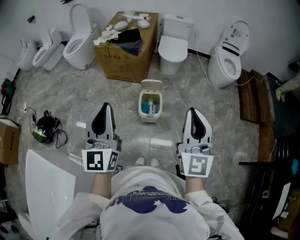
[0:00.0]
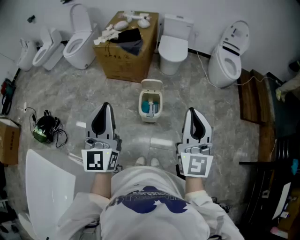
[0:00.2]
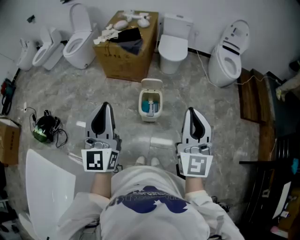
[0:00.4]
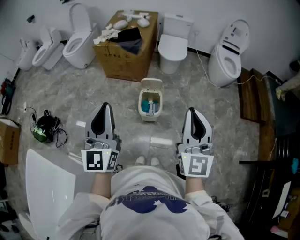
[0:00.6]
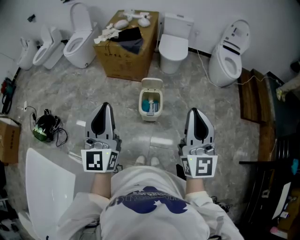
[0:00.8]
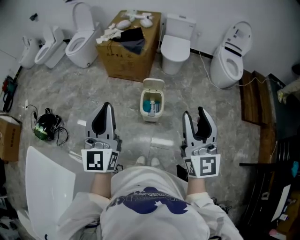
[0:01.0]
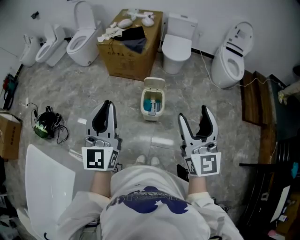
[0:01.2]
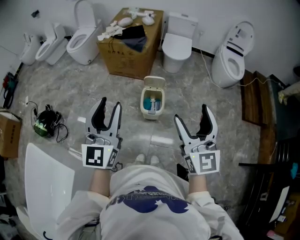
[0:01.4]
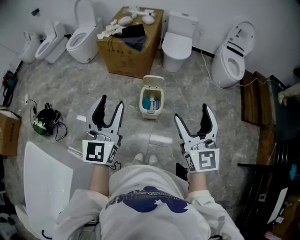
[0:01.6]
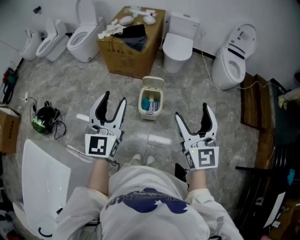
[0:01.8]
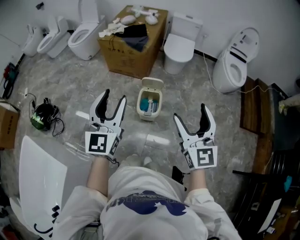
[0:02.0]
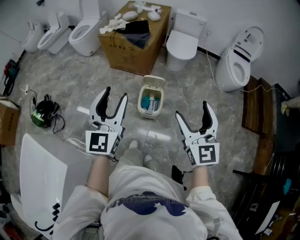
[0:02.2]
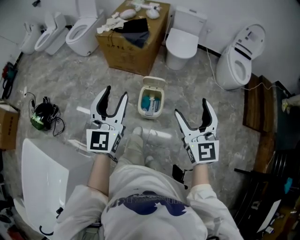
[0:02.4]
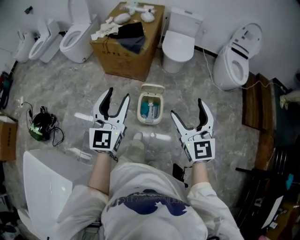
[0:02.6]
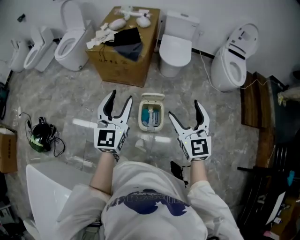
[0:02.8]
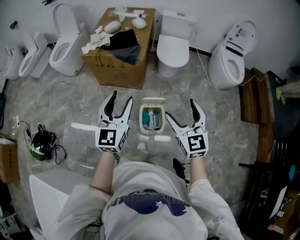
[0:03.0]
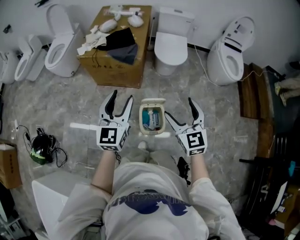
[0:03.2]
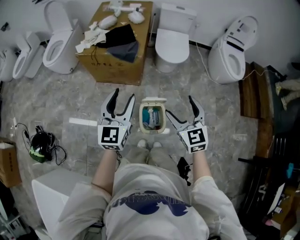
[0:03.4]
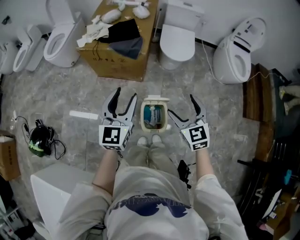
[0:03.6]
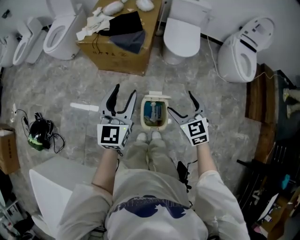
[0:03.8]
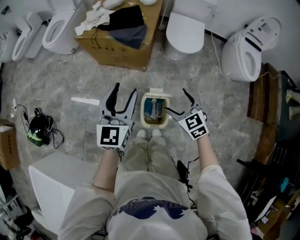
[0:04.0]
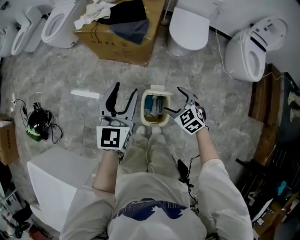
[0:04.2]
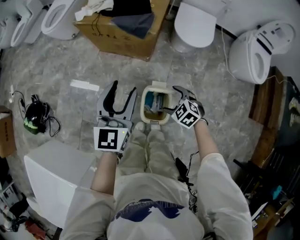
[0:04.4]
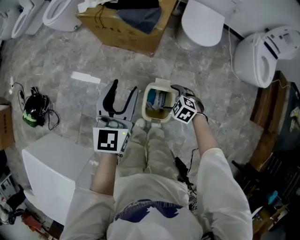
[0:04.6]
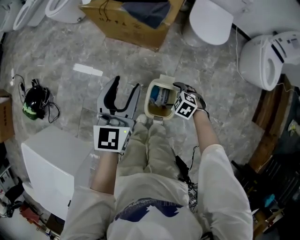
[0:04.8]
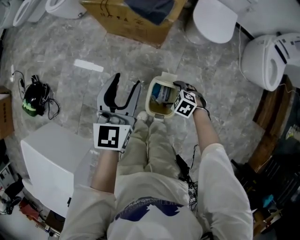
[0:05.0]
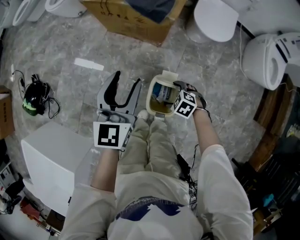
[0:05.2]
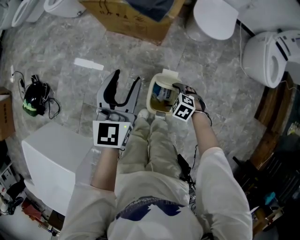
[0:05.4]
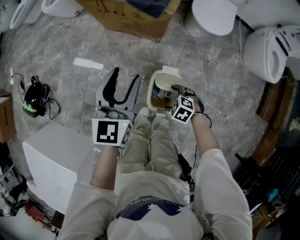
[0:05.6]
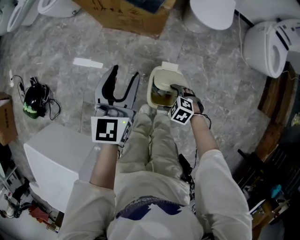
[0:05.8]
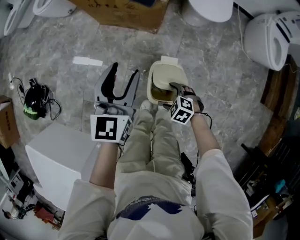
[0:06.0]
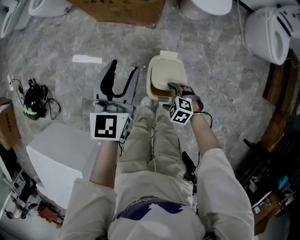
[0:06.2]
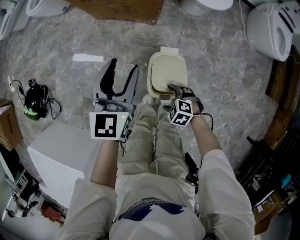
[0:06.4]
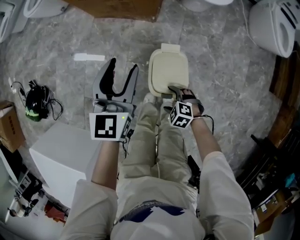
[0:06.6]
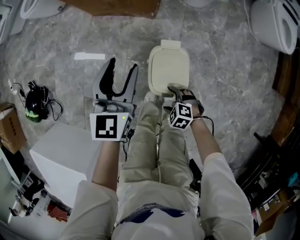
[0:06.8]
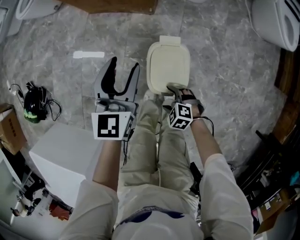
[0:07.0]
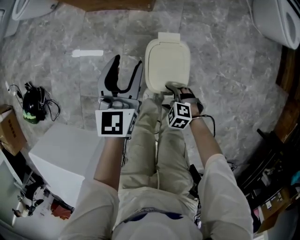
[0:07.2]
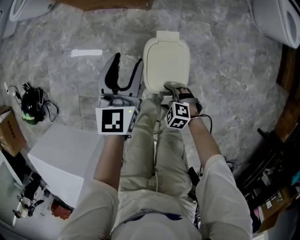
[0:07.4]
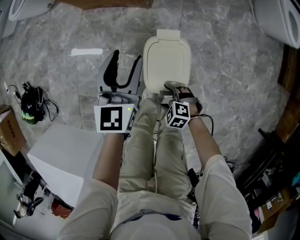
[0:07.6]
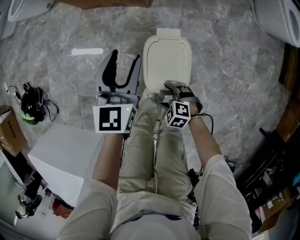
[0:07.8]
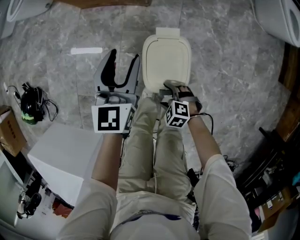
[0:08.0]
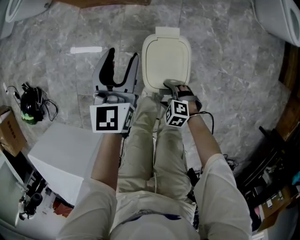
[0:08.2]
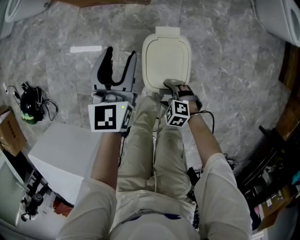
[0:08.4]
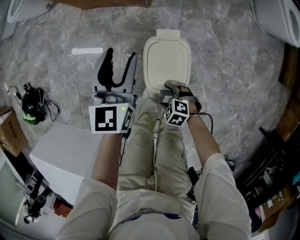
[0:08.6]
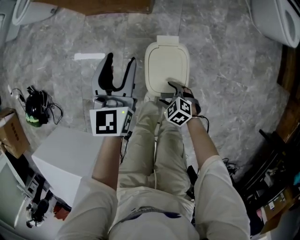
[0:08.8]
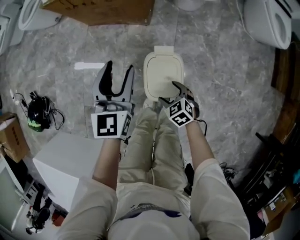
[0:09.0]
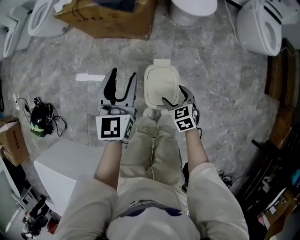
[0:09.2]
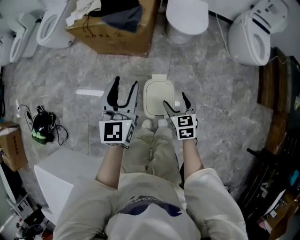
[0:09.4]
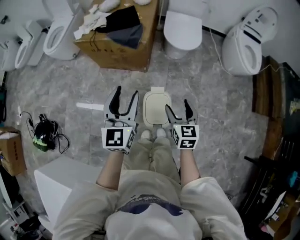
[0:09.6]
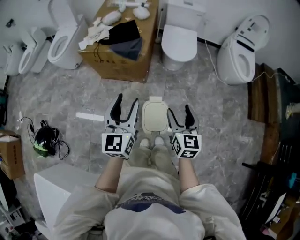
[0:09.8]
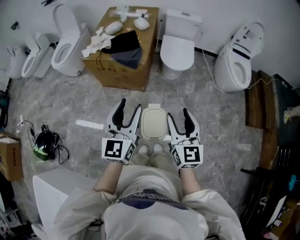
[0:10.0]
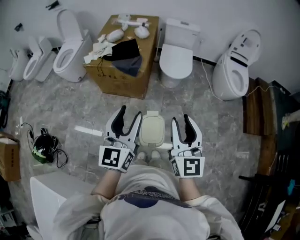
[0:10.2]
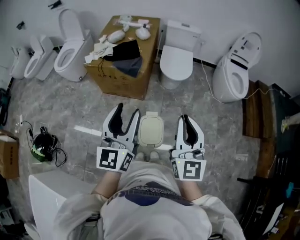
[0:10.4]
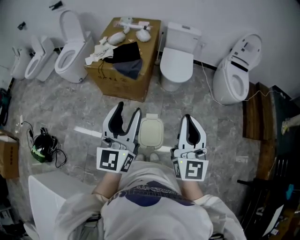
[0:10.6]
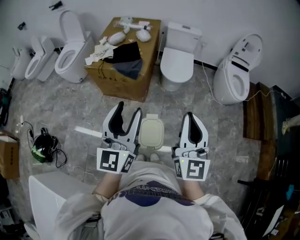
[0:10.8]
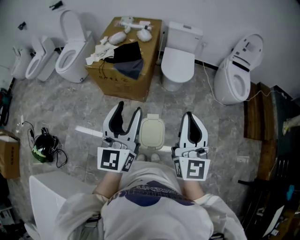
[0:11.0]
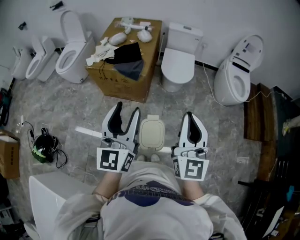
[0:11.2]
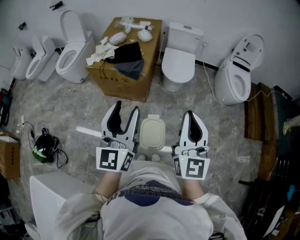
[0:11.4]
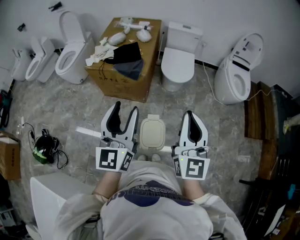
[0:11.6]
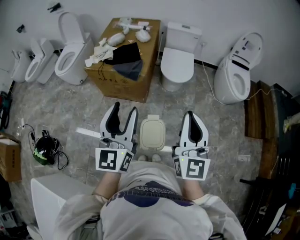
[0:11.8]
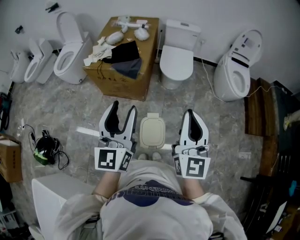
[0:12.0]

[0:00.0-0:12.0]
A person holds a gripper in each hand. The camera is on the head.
0:00.0 to 0:01.6: The right gripper opens its fingers. Meanwhile the left gripper opens.
0:01.6 to 0:03.0: The right gripper moves forward and downward, approximately 30 cm, while the left gripper moves forward, about 30 cm.
0:03.0 to 0:04.4: The right gripper goes about 35 cm downward, and angles its fingers downward, by roughly 50 degrees, while the left gripper moves approximately 15 cm.
0:04.4 to 0:06.0: The right gripper heads downward, to the left and backward, covering about 15 cm, while the left gripper shifts roughly 10 cm downward.
0:06.0 to 0:07.6: The left gripper goes some 20 cm downward. The right gripper heads downward, backward and to the left, covering some 20 cm.
0:07.6 to 0:09.0: The right gripper shifts roughly 15 cm upward, forward and to the right, and rotates approximately 30 degrees. Meanwhile the left gripper moves upward, approximately 10 cm.
0:09.0 to 0:10.4: The left gripper shifts approximately 40 cm upward, and swivels roughly 20 degrees, while the right gripper travels upward by some 60 cm, tilts its fingers some 60 degrees upward, and closes up.
0:10.4 to 0:12.0: There are only small adjustments of the grippers.

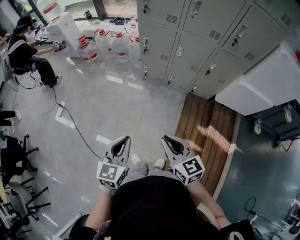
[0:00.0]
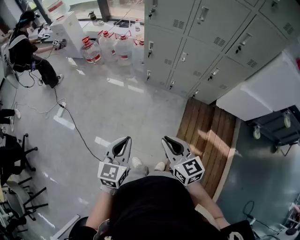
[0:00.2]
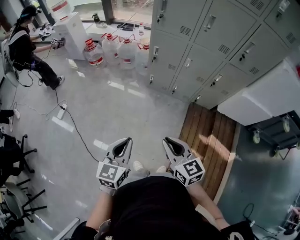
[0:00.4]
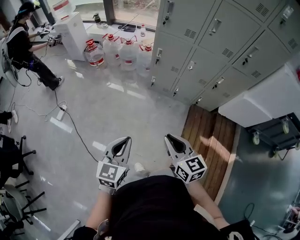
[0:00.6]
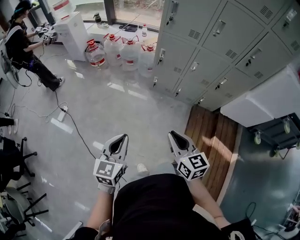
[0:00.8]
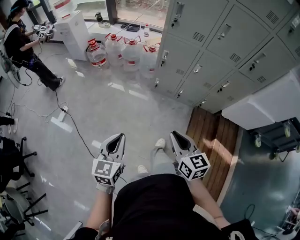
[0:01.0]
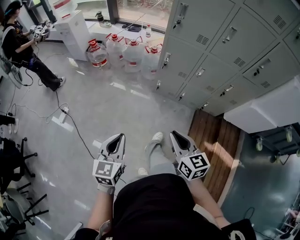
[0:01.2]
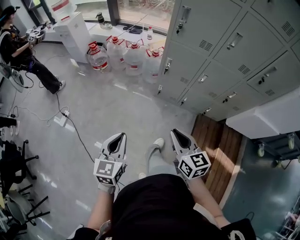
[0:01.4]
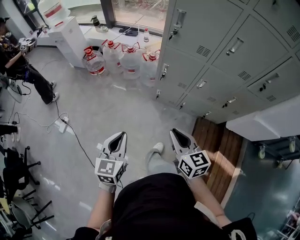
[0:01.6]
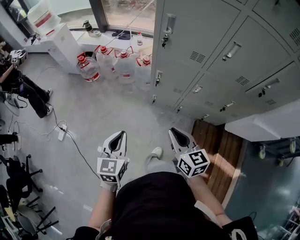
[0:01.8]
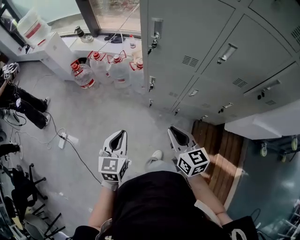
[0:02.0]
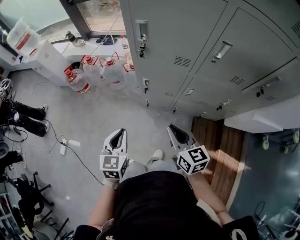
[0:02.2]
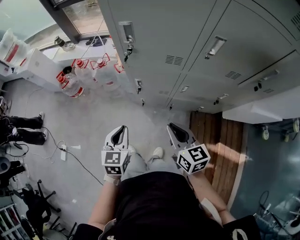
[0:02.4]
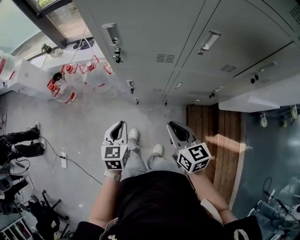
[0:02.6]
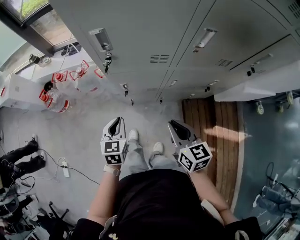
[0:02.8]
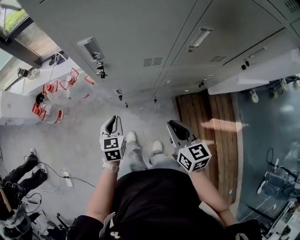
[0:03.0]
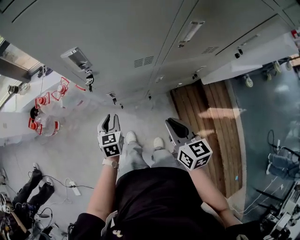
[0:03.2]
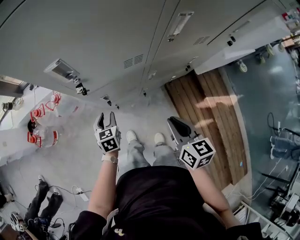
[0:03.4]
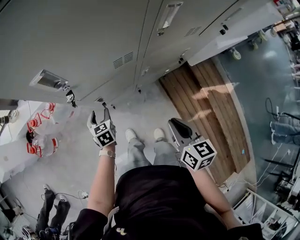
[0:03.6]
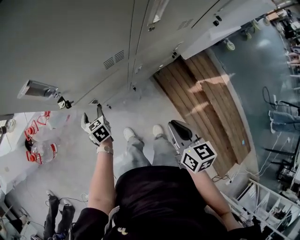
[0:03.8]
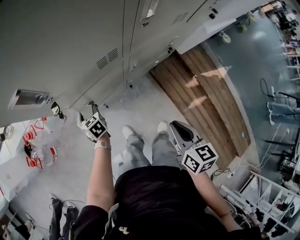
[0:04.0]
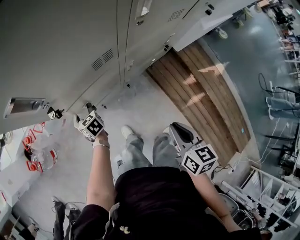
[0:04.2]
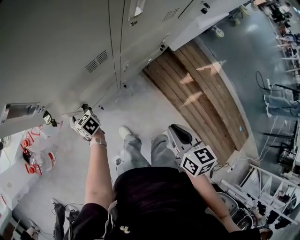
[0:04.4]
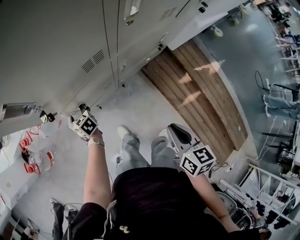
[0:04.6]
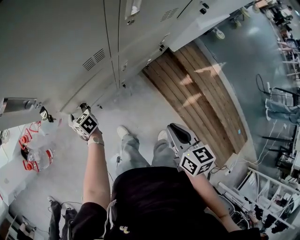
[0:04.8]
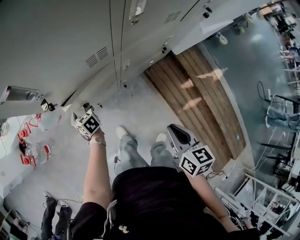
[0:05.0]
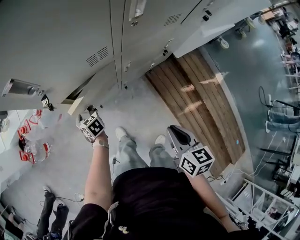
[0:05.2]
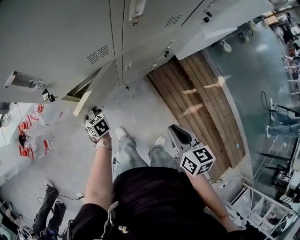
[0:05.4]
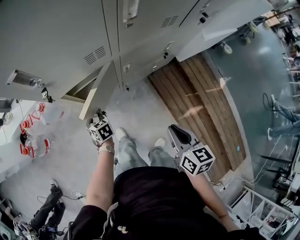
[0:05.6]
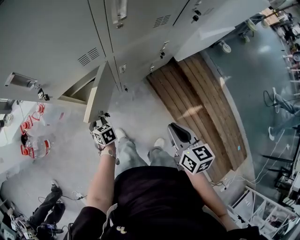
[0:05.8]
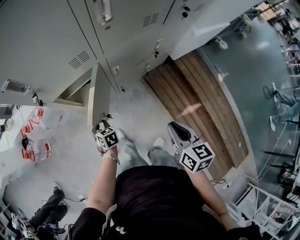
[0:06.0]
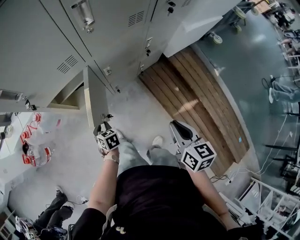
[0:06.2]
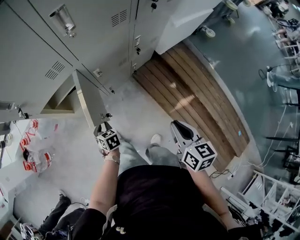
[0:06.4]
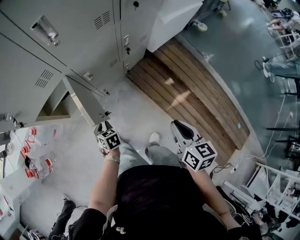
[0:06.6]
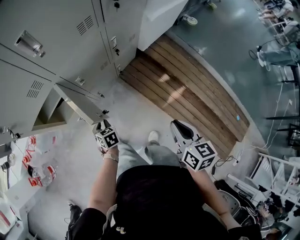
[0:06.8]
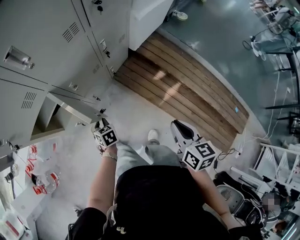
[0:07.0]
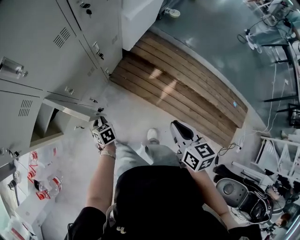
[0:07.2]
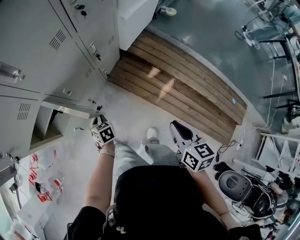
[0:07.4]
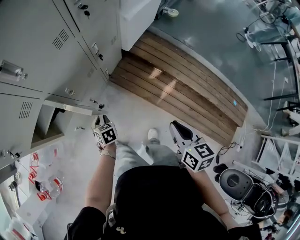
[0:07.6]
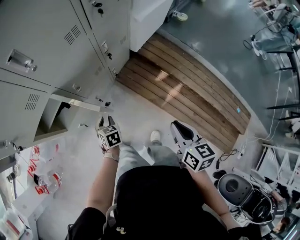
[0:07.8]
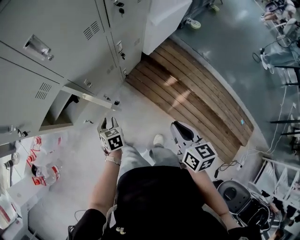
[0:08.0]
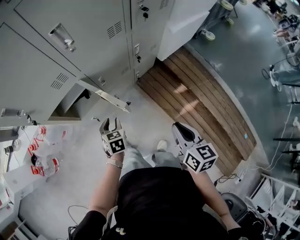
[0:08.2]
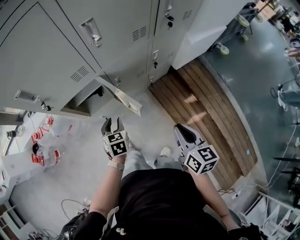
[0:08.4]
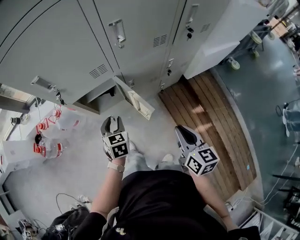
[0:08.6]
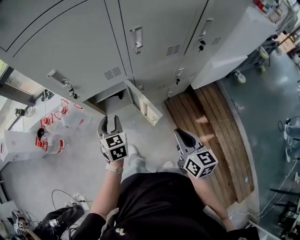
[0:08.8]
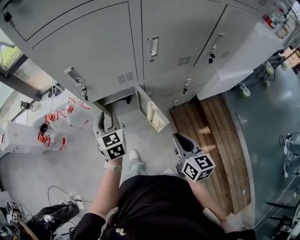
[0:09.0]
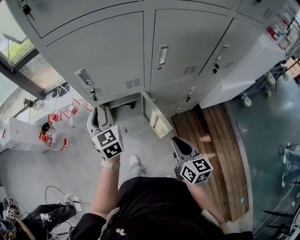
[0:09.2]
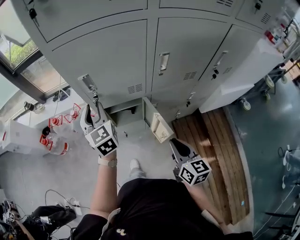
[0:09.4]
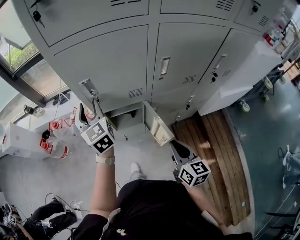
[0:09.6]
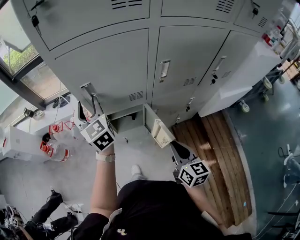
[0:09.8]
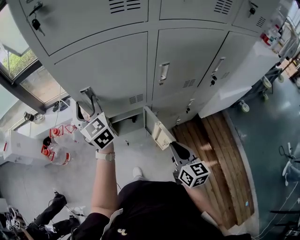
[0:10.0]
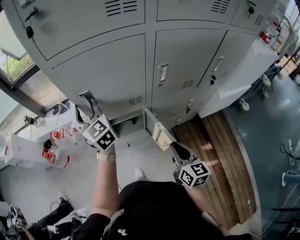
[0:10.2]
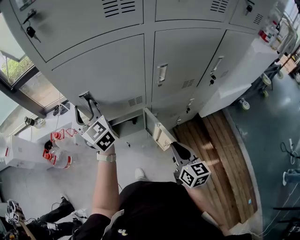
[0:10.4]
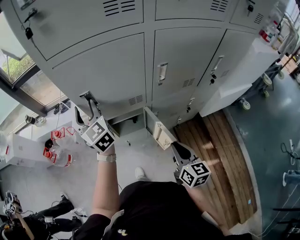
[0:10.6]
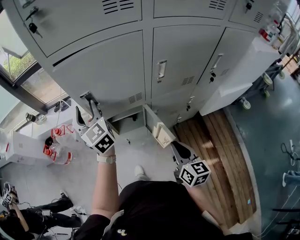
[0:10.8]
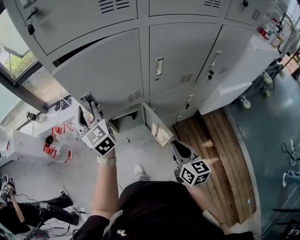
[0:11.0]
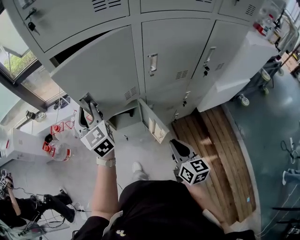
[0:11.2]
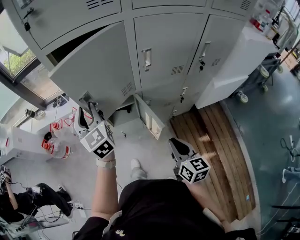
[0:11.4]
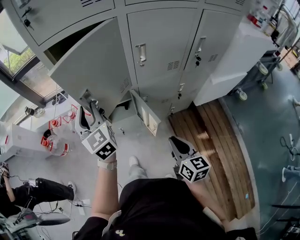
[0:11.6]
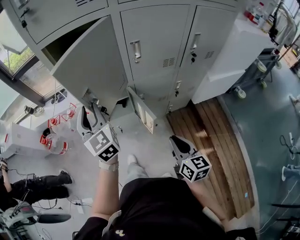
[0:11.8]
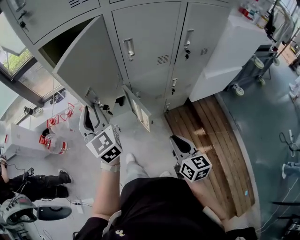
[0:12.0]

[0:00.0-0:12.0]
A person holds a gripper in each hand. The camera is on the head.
0:00.0 to 0:01.6: The right gripper moves forward, some 30 cm, while the left gripper moves forward and to the left, about 30 cm.
0:01.6 to 0:03.0: The right gripper is displaced forward and to the right by roughly 25 cm, and turns by approximately 30 degrees. The left gripper travels forward by some 35 cm, and swivels some 30 degrees.
0:03.0 to 0:04.4: The left gripper heads forward and downward, covering roughly 25 cm, and opens up. Meanwhile the right gripper travels backward by some 10 cm, and turns by approximately 40 degrees.
0:04.4 to 0:06.0: The right gripper shifts some 10 cm to the right and backward; the left gripper heads backward and to the right, covering about 20 cm, and closes up.
0:06.0 to 0:07.6: The left gripper changes place by some 25 cm, and changes its angle by approximately 30 degrees; the right gripper shifts by roughly 20 cm, and rotates roughly 20 degrees.
0:07.6 to 0:09.0: The left gripper travels upward by roughly 30 cm, and points its fingers approximately 30 degrees further upward. Meanwhile the right gripper ends up approximately 25 cm from where it was, and swivels about 40 degrees.
0:09.0 to 0:10.4: The left gripper is displaced upward, forward and to the left by some 25 cm, and turns by about 30 degrees; the right gripper goes roughly 5 cm forward.
0:10.4 to 0:12.0: The left gripper heads backward and to the right, covering about 25 cm, and closes. The right gripper goes some 15 cm backward.
